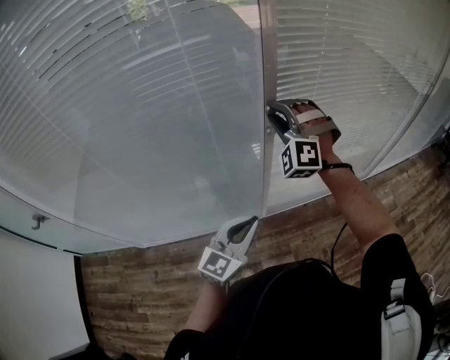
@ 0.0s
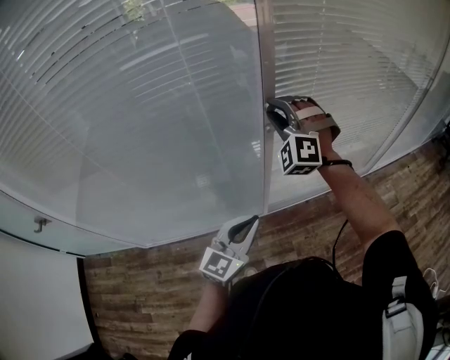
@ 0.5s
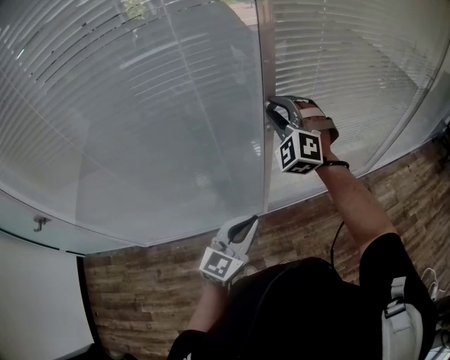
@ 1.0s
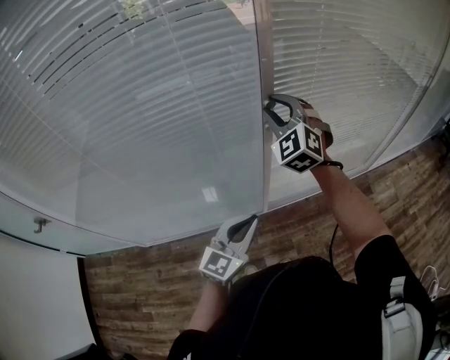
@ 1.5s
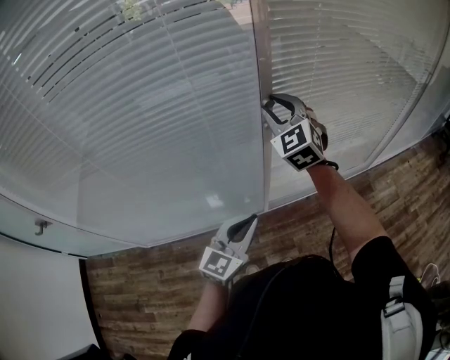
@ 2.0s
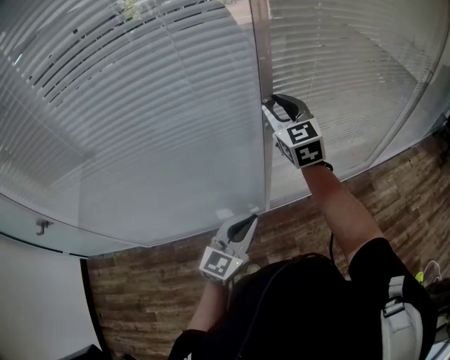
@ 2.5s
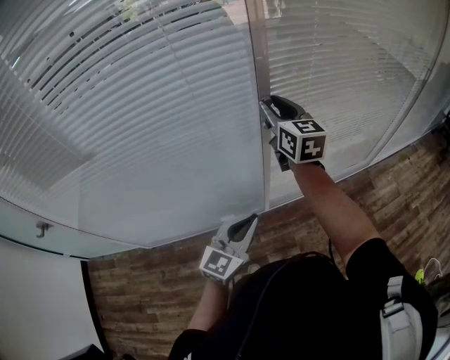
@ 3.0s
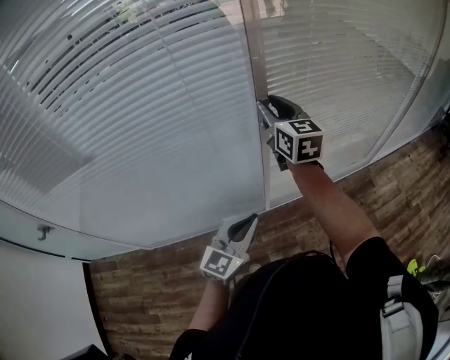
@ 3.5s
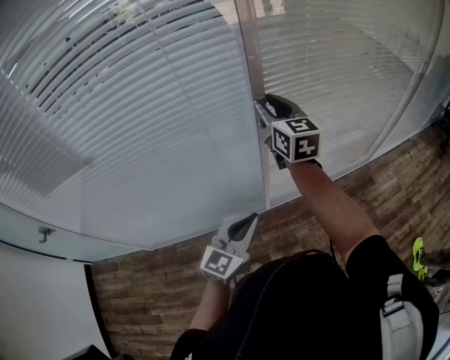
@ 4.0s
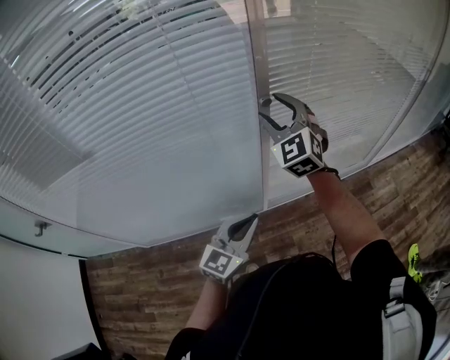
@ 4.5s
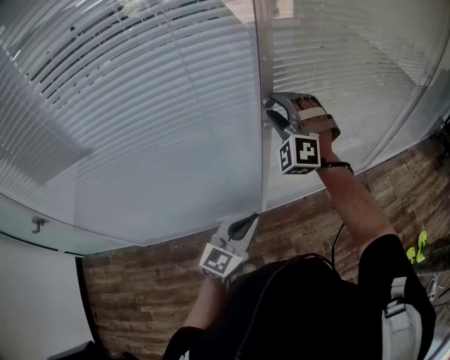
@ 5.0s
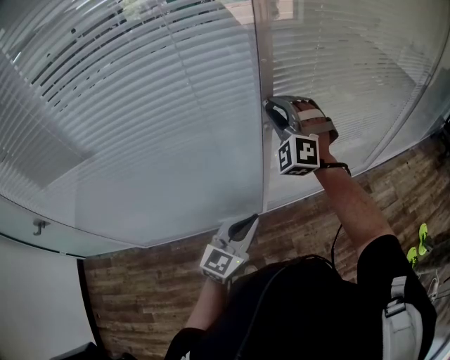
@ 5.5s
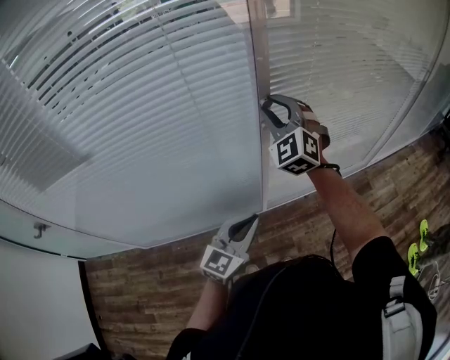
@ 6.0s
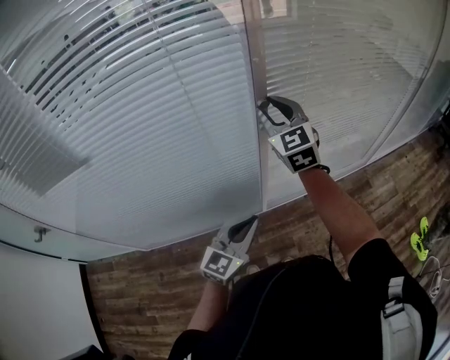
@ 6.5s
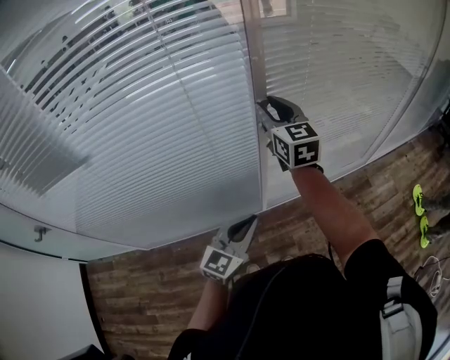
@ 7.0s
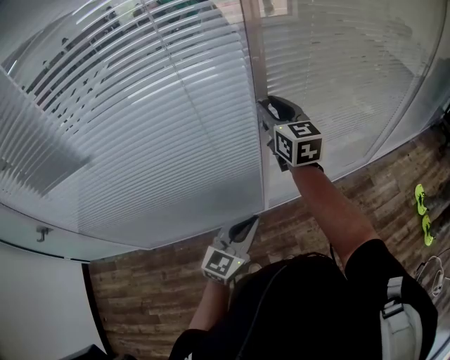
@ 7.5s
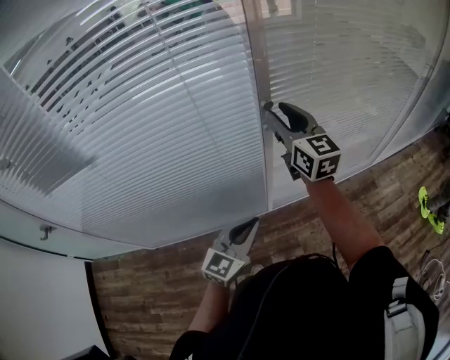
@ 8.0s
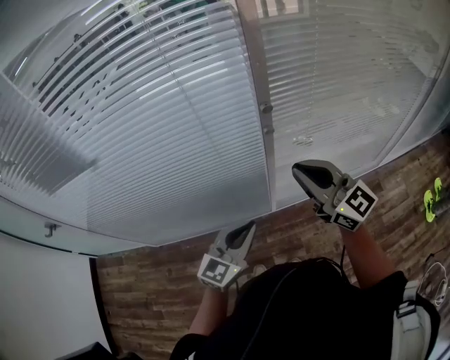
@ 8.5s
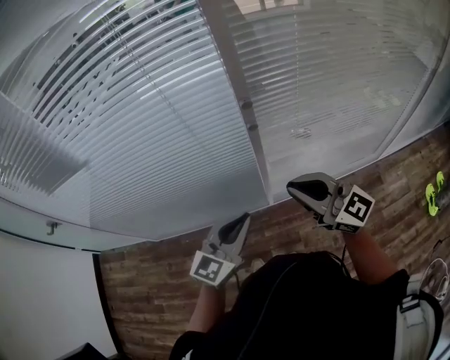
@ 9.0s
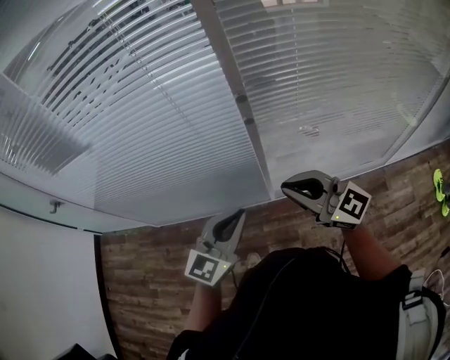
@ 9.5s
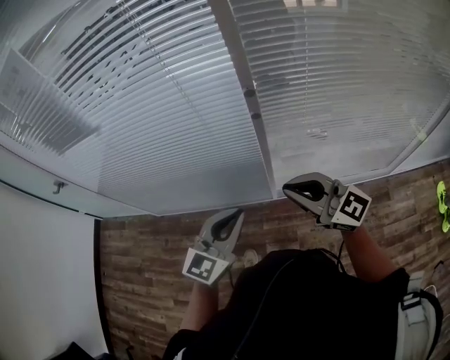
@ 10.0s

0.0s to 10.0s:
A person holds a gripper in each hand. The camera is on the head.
0.0s to 2.0s: The right gripper rolls clockwise, seen from behind, by roughly 40 degrees.
2.0s to 4.0s: The right gripper rolls clockwise, seen from behind, by about 40 degrees.
4.0s to 6.0s: The right gripper twists about 60 degrees counterclockwise, seen from behind, and opens, then closes once more.
6.0s to 8.0s: The right gripper rolls clockwise, seen from behind, by about 60 degrees.
8.0s to 10.0s: The left gripper moves roughly 10 cm. Meanwhile the right gripper changes place by roughly 20 cm, swivels about 50 degrees, and closes its fingers.

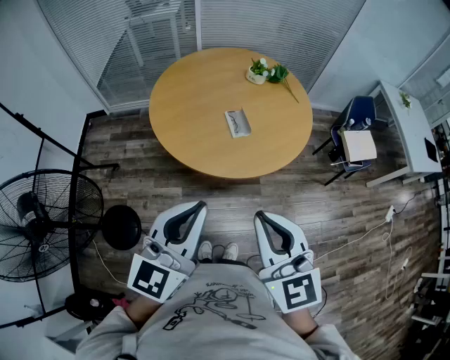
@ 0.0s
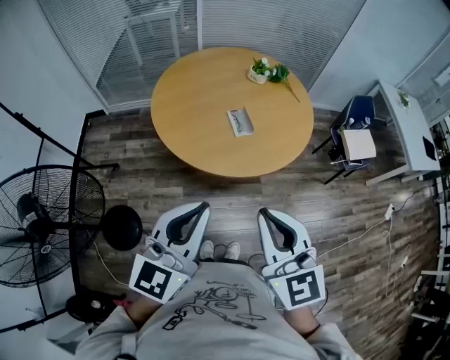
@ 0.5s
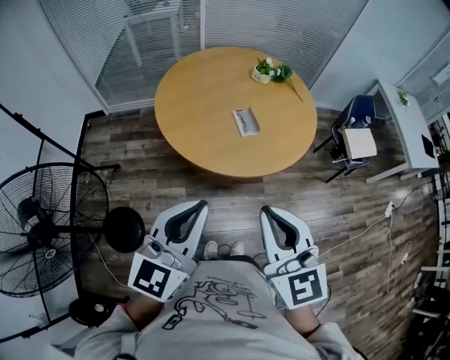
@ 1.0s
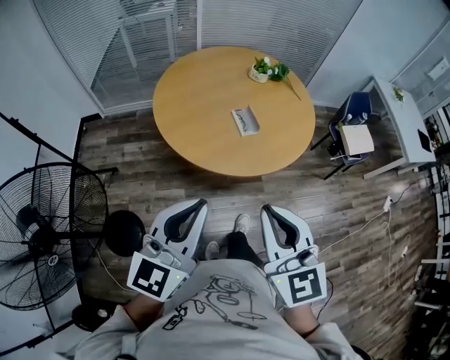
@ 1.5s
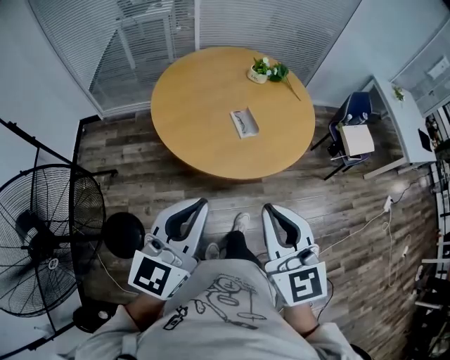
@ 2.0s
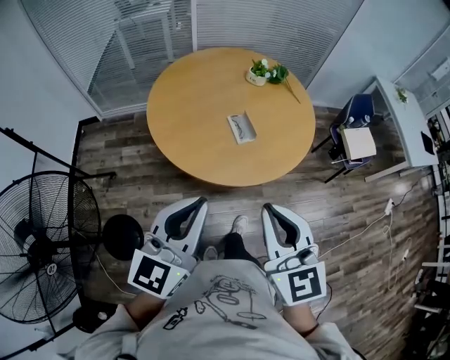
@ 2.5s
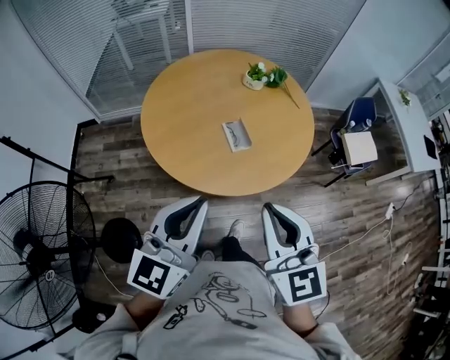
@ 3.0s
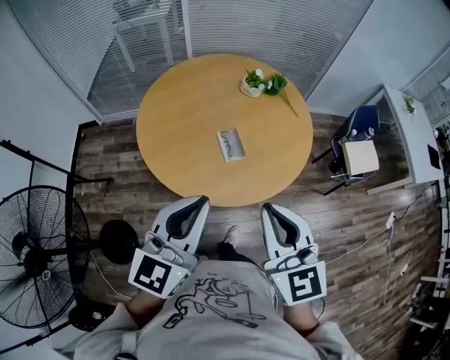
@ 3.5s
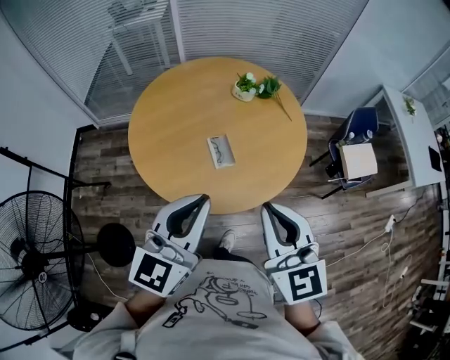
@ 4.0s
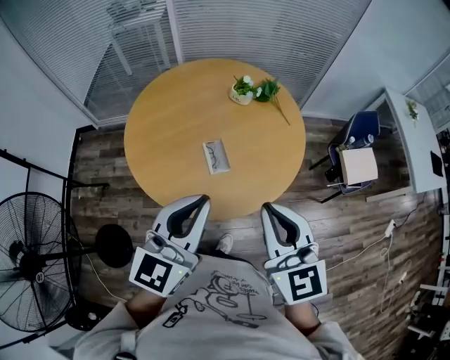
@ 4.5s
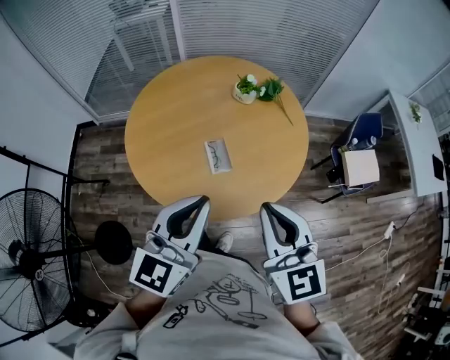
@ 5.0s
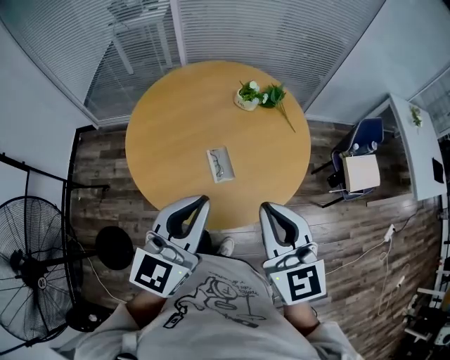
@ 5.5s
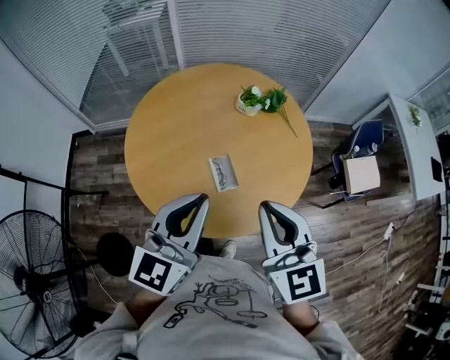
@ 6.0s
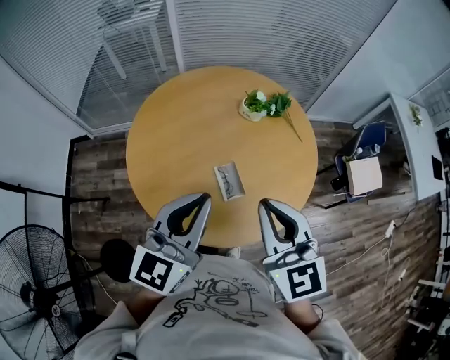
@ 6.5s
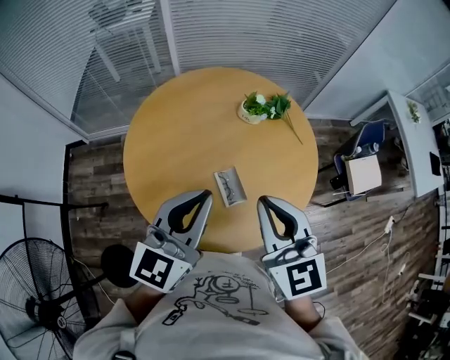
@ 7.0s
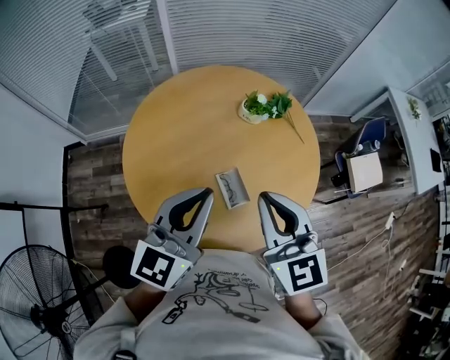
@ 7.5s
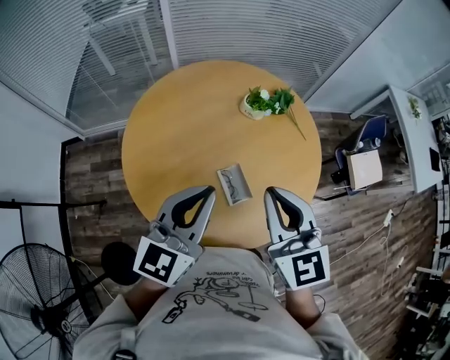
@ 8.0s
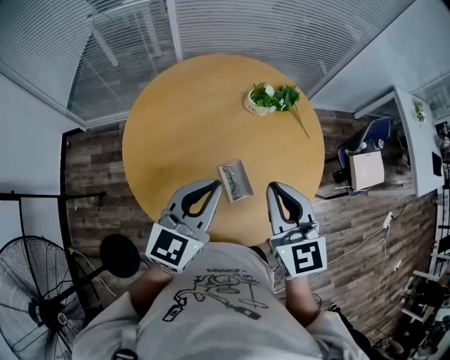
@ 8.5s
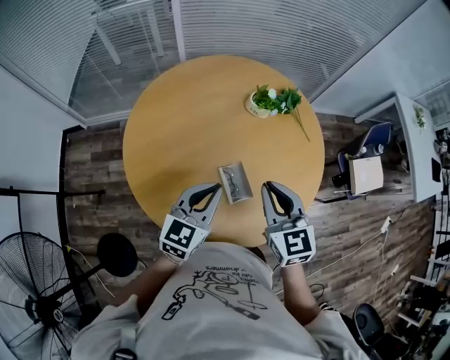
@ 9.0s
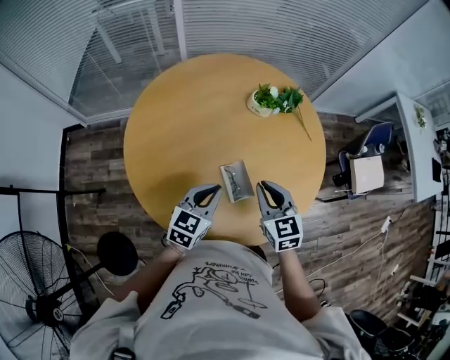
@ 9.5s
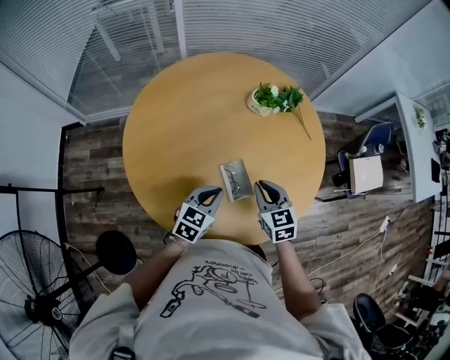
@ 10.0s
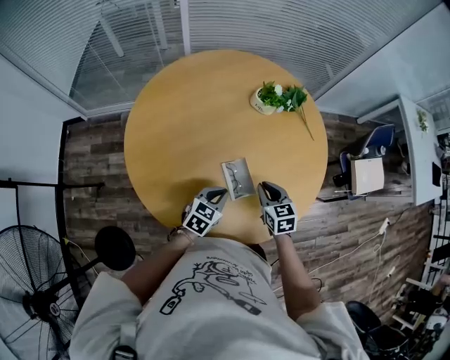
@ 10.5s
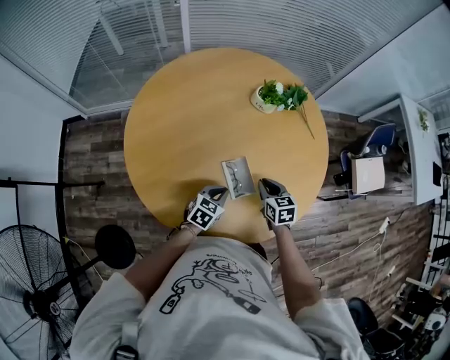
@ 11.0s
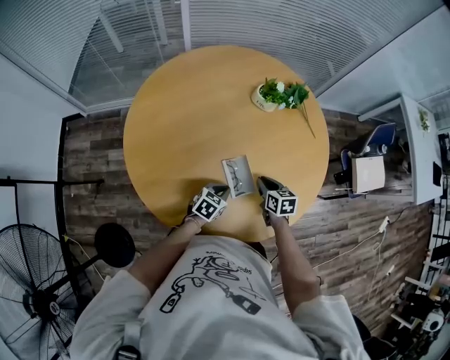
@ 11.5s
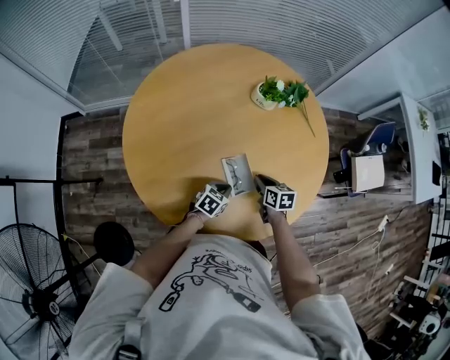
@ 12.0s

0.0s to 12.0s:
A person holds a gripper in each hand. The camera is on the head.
0.0s to 2.0s: Both grippers move to the left, about 10 cm.
2.0s to 4.0s: The grippers both shift forward and to the right by approximately 25 cm.
4.0s to 6.0s: The grippers both shift forward by approximately 15 cm.
6.0s to 8.0s: The grippers both shift forward and to the left by approximately 15 cm.
8.0s to 10.0s: The grippers both shift downward by about 25 cm. The right gripper rotates some 20 degrees. The left gripper swivels roughly 30 degrees.
10.0s to 12.0s: Both grippers travel together downward, some 15 cm. The right gripper changes its angle by roughly 30 degrees. The left gripper swivels roughly 20 degrees.

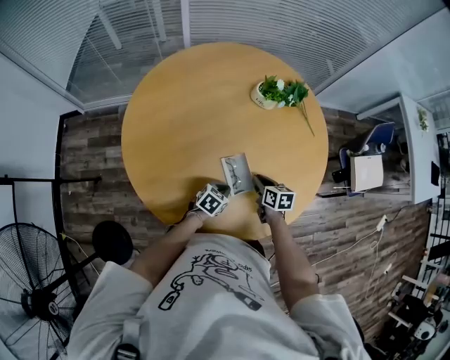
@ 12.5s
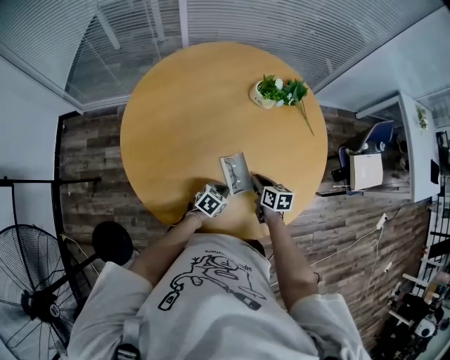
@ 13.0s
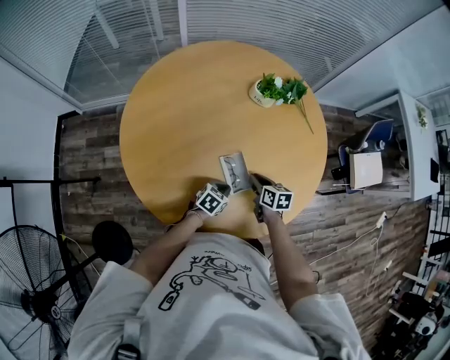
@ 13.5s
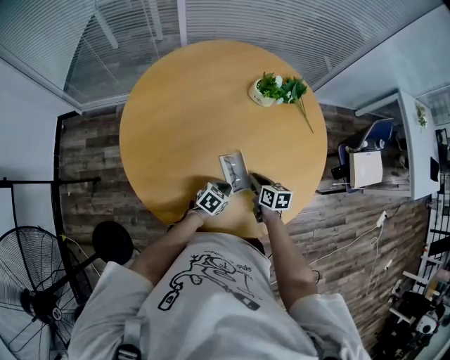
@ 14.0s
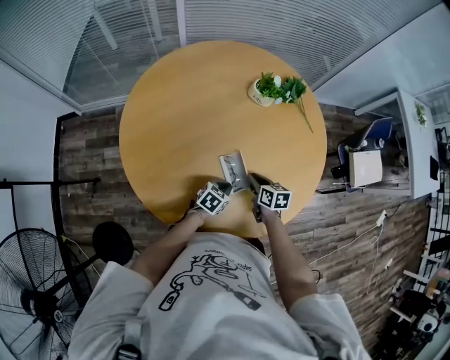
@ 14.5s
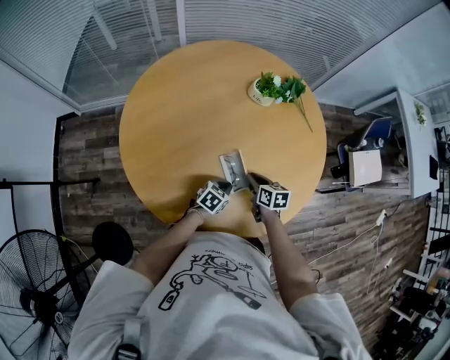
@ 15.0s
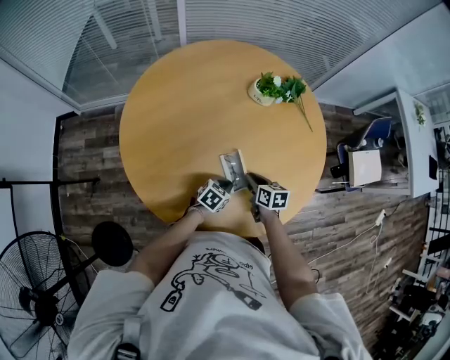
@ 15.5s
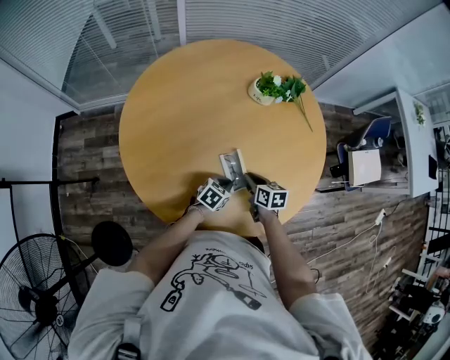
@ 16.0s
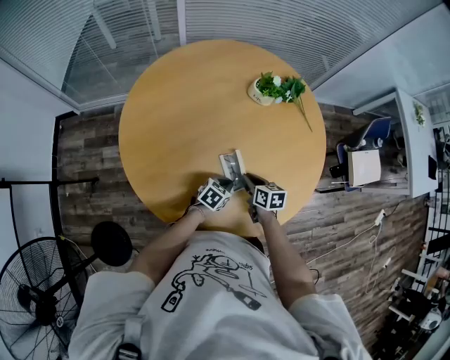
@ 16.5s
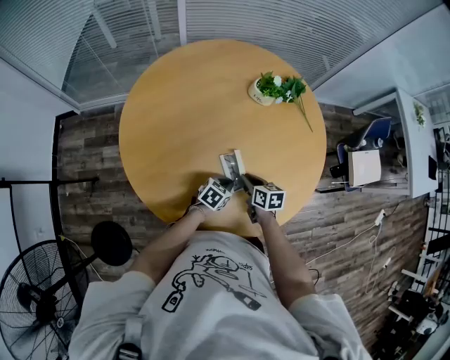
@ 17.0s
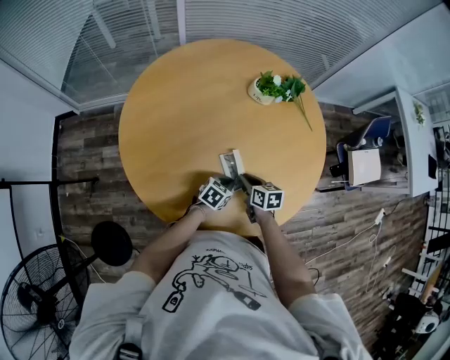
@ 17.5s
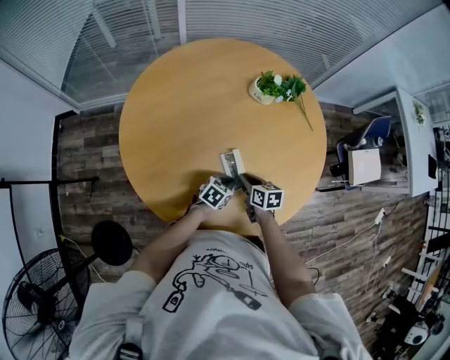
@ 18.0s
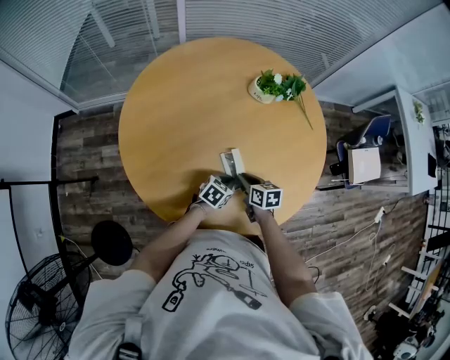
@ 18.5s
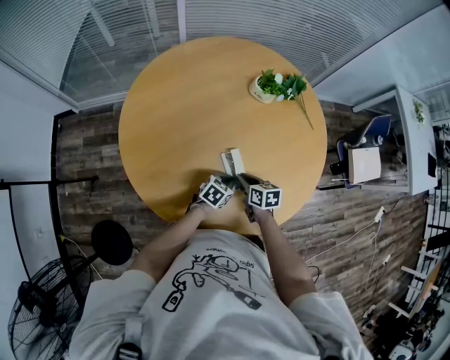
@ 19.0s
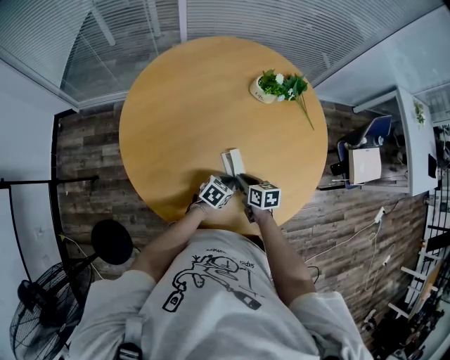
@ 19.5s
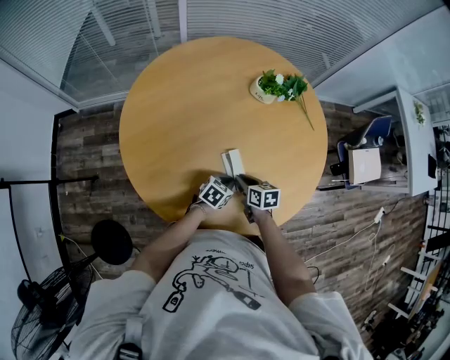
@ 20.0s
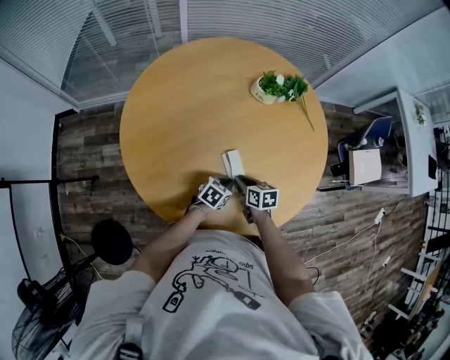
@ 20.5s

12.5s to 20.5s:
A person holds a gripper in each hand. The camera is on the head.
12.5s to 16.5s: There are only small adjustments of the grippers.
16.5s to 20.5s: The grippers stay close to where they were, moving slightly.
